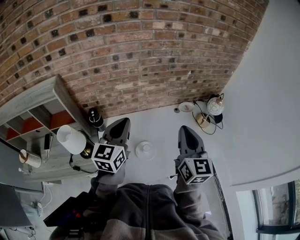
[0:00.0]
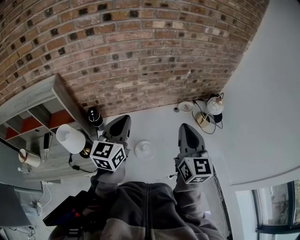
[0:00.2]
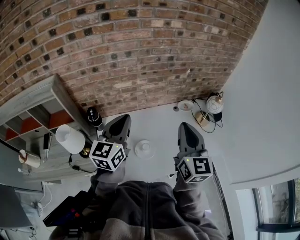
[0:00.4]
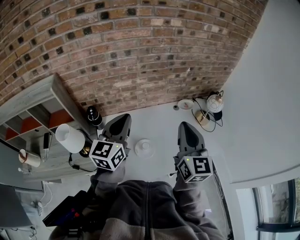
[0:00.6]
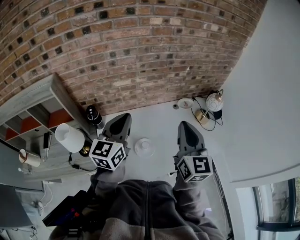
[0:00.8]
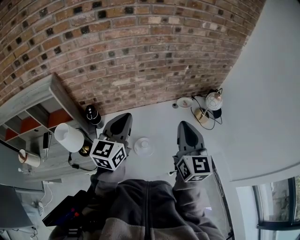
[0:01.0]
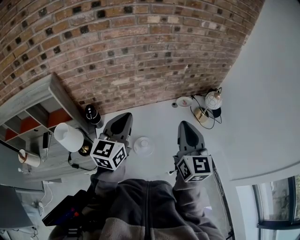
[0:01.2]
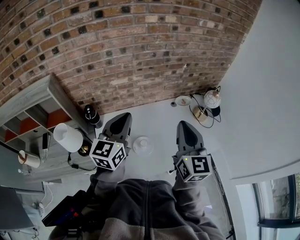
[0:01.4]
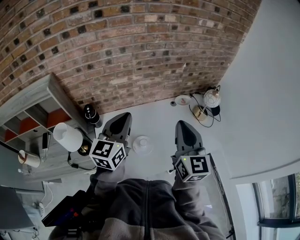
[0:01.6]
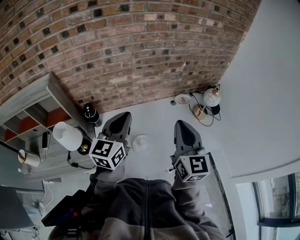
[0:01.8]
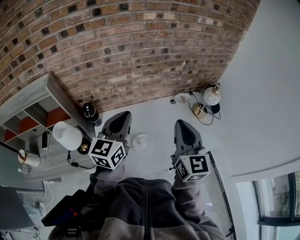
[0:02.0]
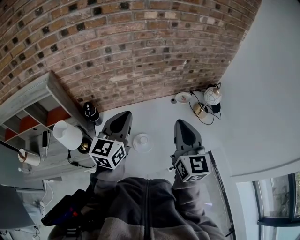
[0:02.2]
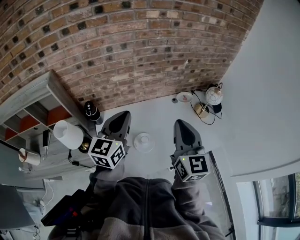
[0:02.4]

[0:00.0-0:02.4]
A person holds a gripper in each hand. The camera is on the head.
0:00.0 to 0:02.4: The grippers make only small movements.

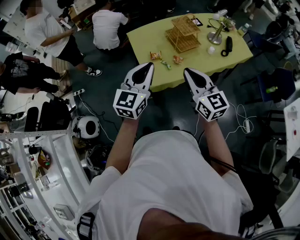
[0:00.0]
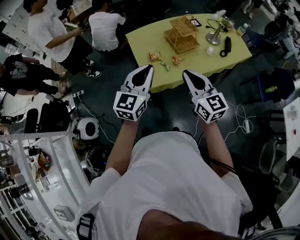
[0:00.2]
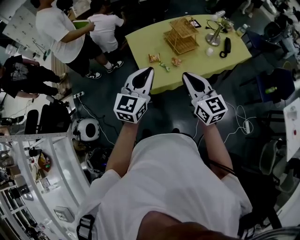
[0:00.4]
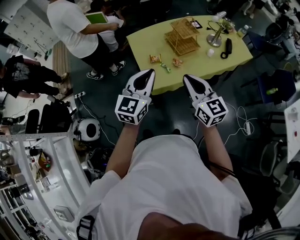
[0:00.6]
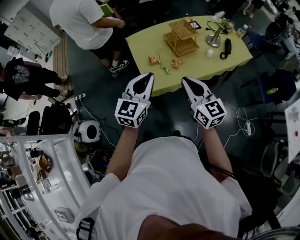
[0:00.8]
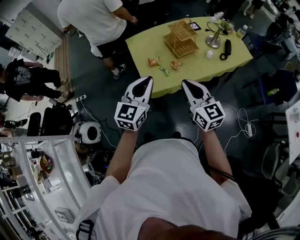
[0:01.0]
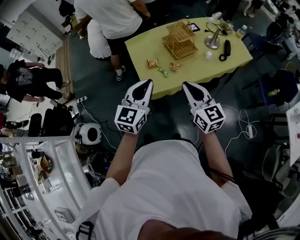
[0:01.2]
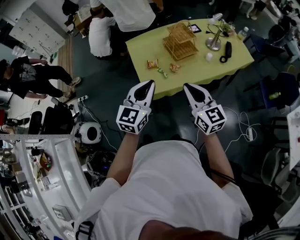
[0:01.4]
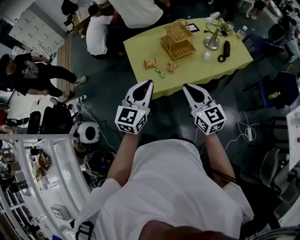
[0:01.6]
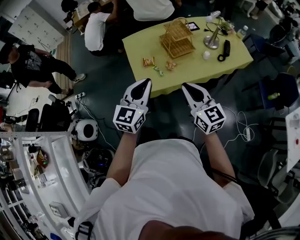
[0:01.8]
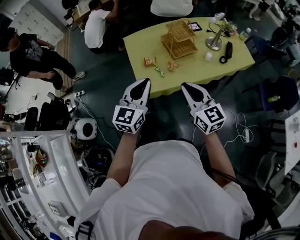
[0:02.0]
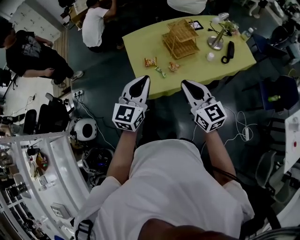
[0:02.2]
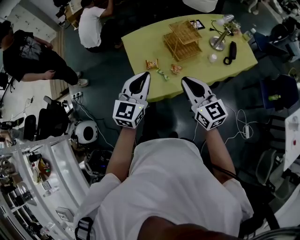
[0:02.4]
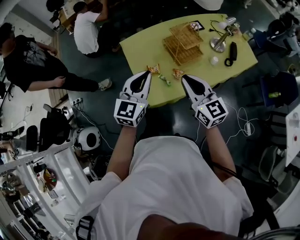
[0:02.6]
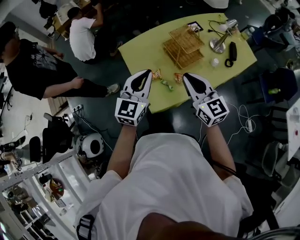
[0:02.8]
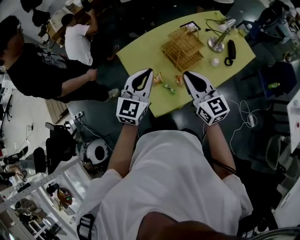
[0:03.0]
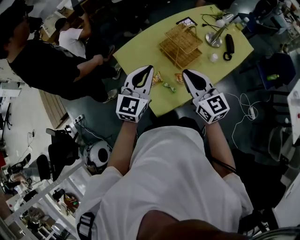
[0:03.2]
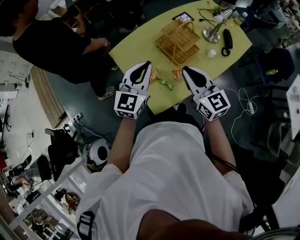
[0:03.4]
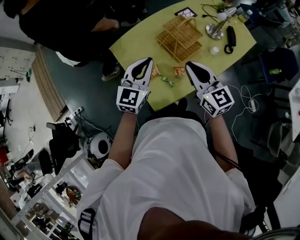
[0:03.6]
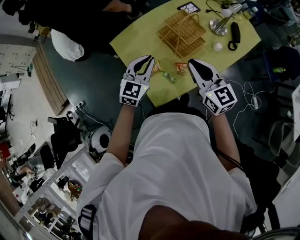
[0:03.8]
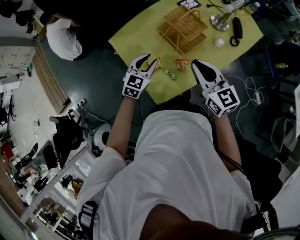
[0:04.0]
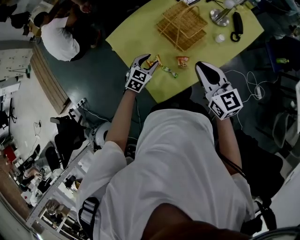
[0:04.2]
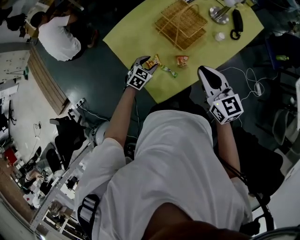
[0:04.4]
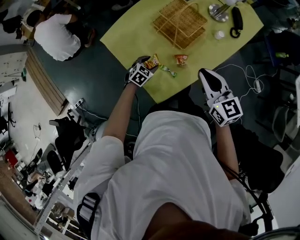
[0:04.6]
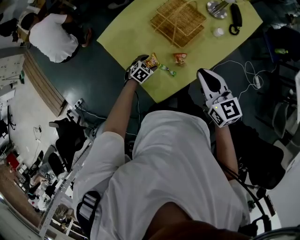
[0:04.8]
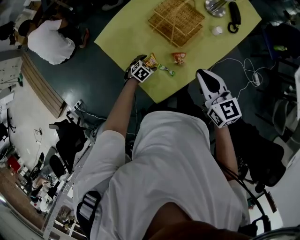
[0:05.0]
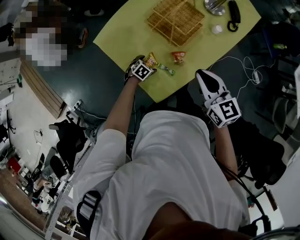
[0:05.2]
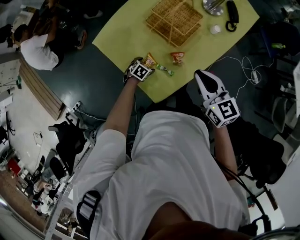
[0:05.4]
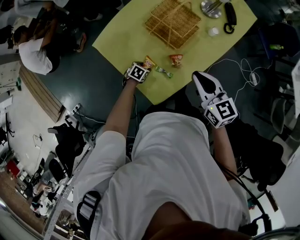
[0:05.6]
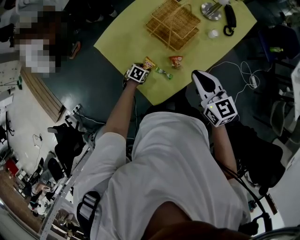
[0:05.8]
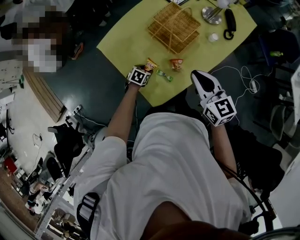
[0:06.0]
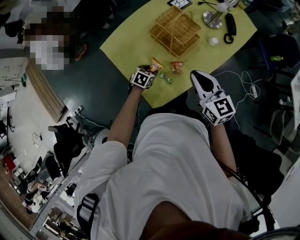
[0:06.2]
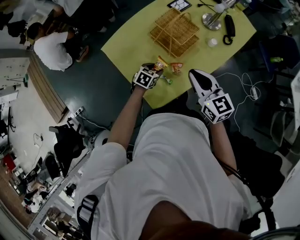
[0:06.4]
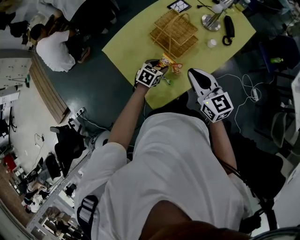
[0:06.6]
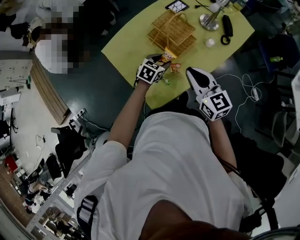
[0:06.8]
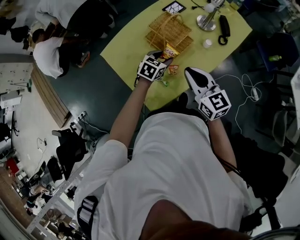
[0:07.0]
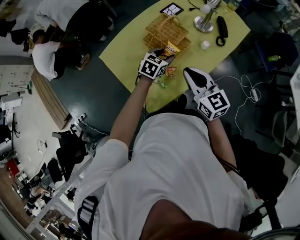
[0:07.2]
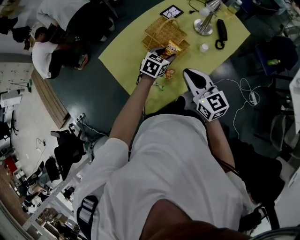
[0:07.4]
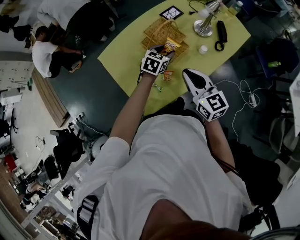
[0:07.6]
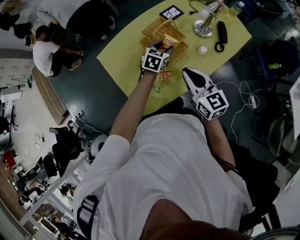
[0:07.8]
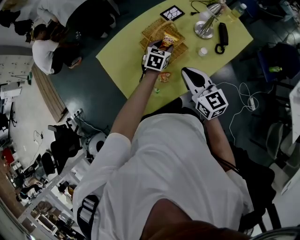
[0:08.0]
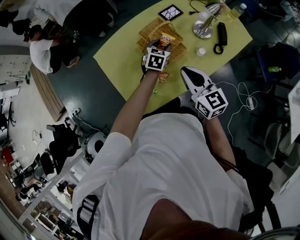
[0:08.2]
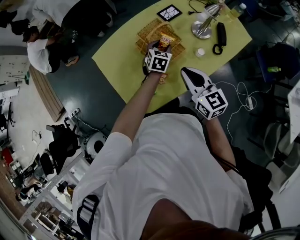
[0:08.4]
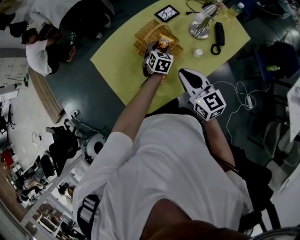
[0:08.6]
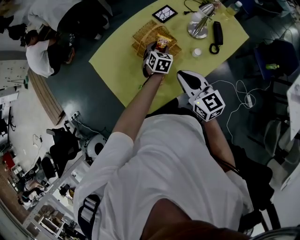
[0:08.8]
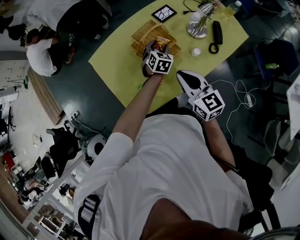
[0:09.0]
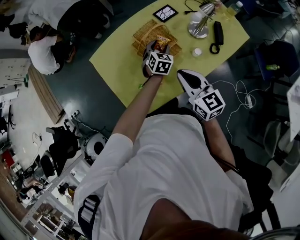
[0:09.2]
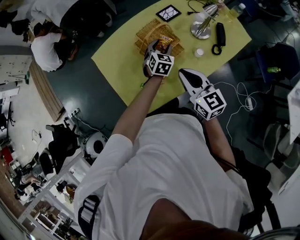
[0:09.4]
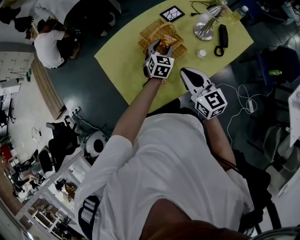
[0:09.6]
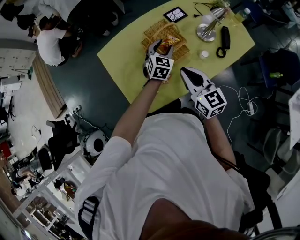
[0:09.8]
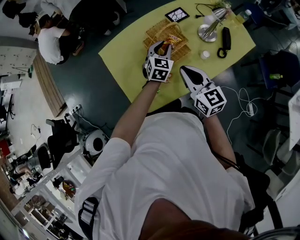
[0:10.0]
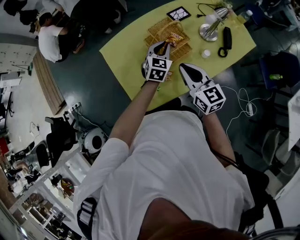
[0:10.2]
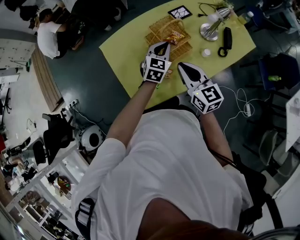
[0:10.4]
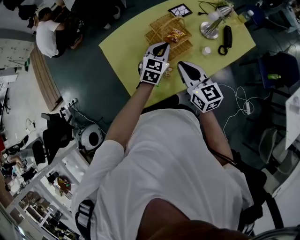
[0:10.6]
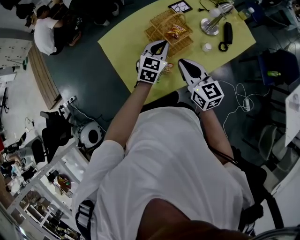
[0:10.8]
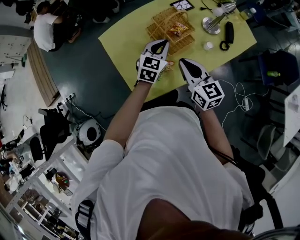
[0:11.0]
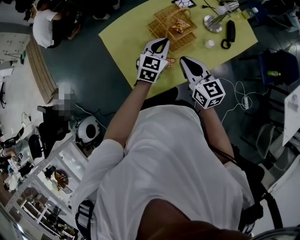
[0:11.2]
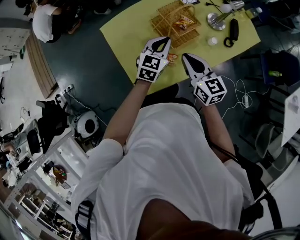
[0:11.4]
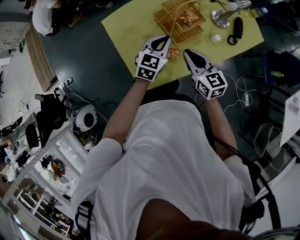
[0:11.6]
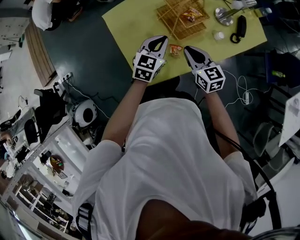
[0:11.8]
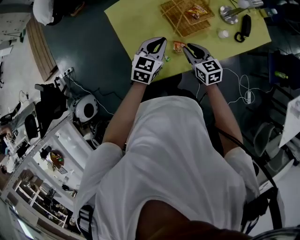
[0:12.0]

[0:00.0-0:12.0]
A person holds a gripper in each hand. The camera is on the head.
0:00.0 to 0:01.6: The grippers both shift to the right by some 10 cm.
0:01.6 to 0:03.0: The two grippers go roughly 25 cm forward.
0:03.0 to 0:04.4: The left gripper is displaced downward by roughly 35 cm, points its fingers approximately 40 degrees further downward, and opens. Meanwhile the right gripper travels downward and to the right by approximately 10 cm.
0:04.4 to 0:06.0: The left gripper travels downward by roughly 10 cm, and turns by roughly 20 degrees.
0:06.0 to 0:07.6: The right gripper is displaced to the right by roughly 5 cm; the left gripper shifts roughly 30 cm upward, to the right and forward, and turns by roughly 30 degrees.
0:07.6 to 0:09.0: The right gripper ends up approximately 5 cm from where it was, while the left gripper is displaced forward and downward by roughly 10 cm, and turns by some 30 degrees.
0:09.0 to 0:10.4: The right gripper heads to the left, covering roughly 5 cm; the left gripper moves upward, backward and to the left, approximately 15 cm, and closes its fingers.
0:10.4 to 0:12.0: The right gripper goes approximately 15 cm downward, and changes its angle by approximately 20 degrees; the left gripper shifts some 15 cm to the left and backward.

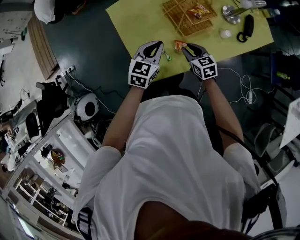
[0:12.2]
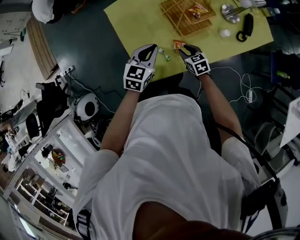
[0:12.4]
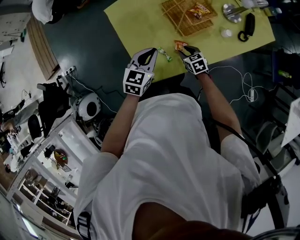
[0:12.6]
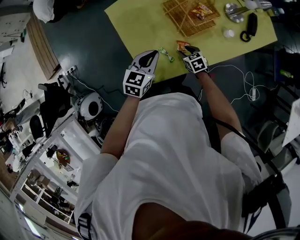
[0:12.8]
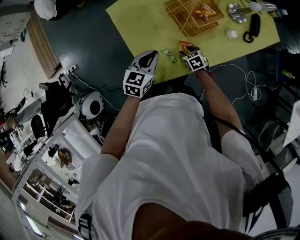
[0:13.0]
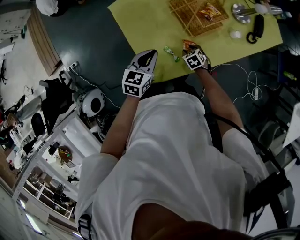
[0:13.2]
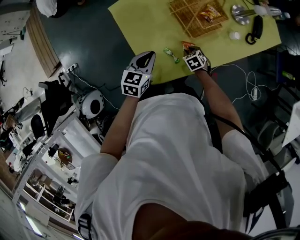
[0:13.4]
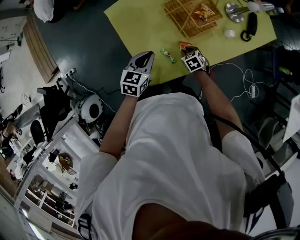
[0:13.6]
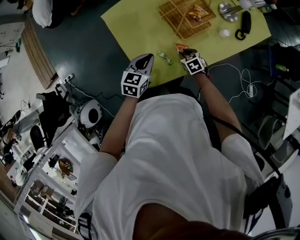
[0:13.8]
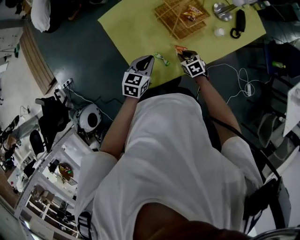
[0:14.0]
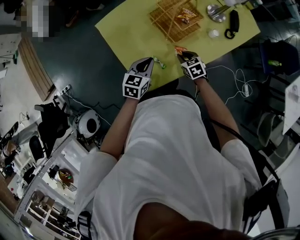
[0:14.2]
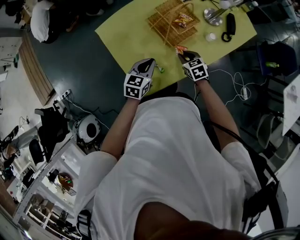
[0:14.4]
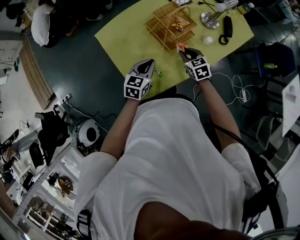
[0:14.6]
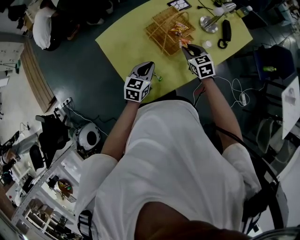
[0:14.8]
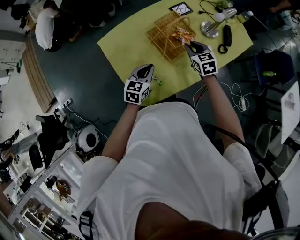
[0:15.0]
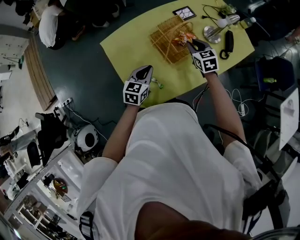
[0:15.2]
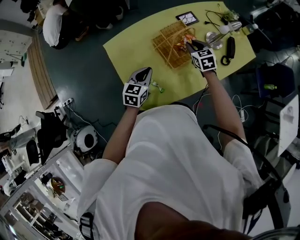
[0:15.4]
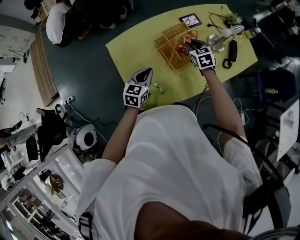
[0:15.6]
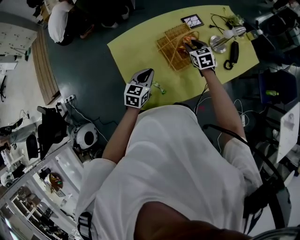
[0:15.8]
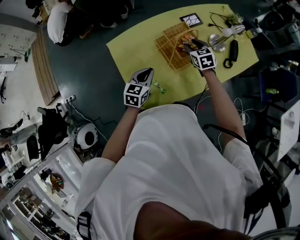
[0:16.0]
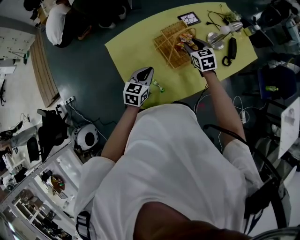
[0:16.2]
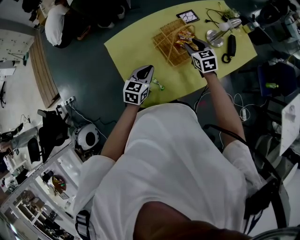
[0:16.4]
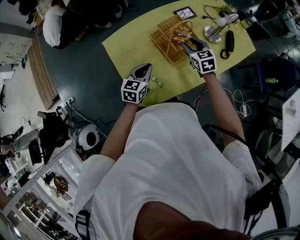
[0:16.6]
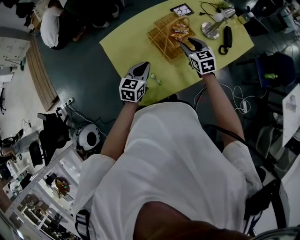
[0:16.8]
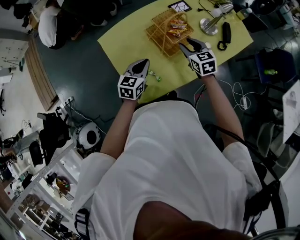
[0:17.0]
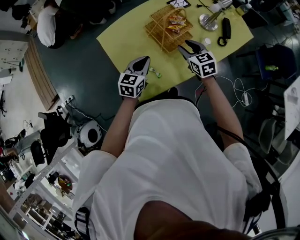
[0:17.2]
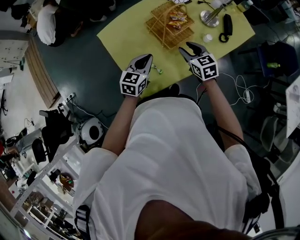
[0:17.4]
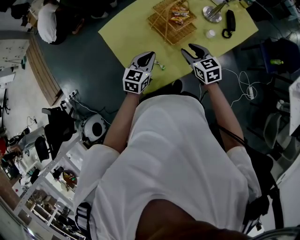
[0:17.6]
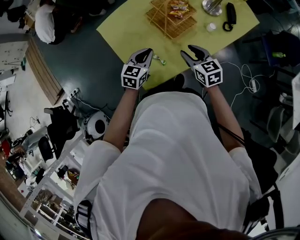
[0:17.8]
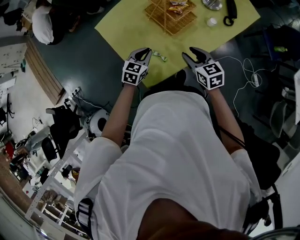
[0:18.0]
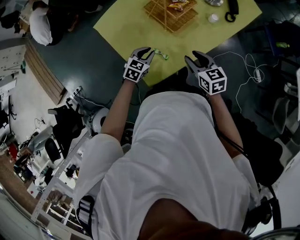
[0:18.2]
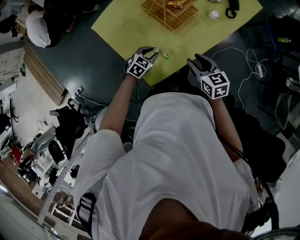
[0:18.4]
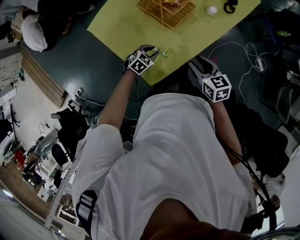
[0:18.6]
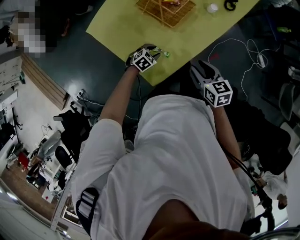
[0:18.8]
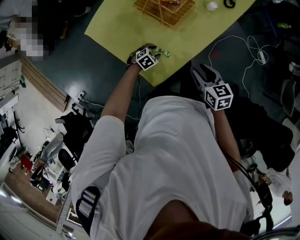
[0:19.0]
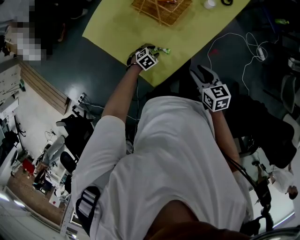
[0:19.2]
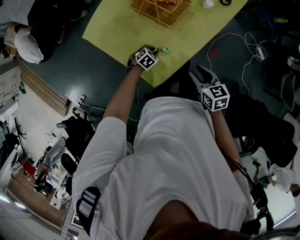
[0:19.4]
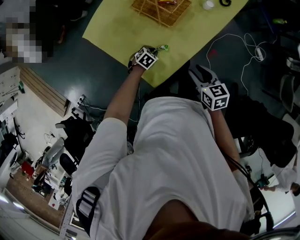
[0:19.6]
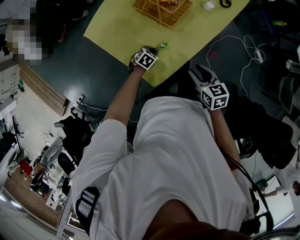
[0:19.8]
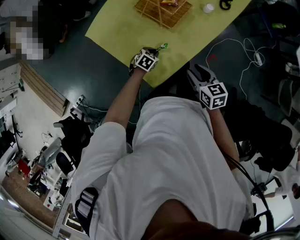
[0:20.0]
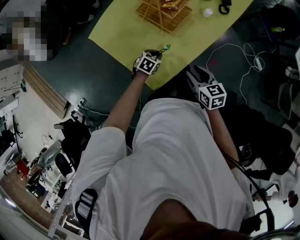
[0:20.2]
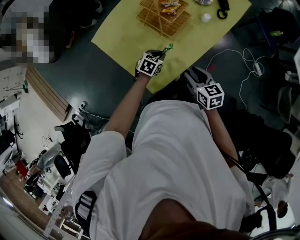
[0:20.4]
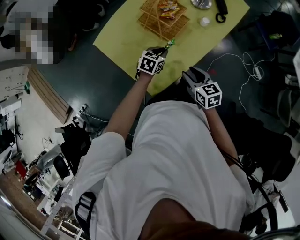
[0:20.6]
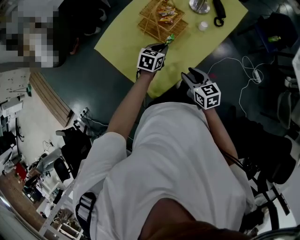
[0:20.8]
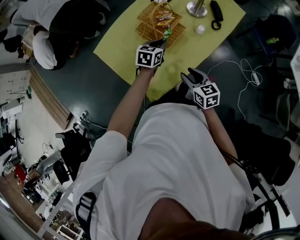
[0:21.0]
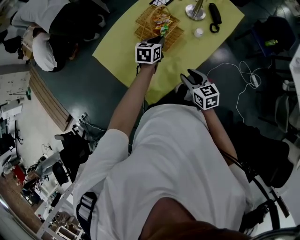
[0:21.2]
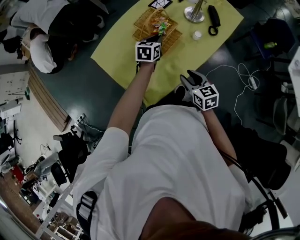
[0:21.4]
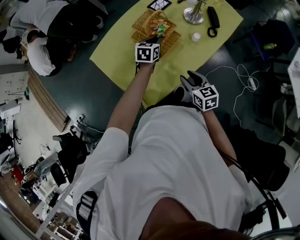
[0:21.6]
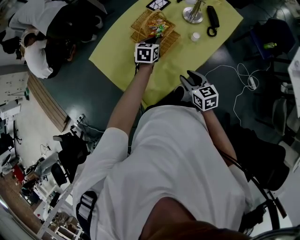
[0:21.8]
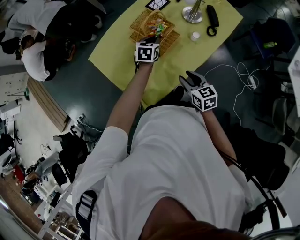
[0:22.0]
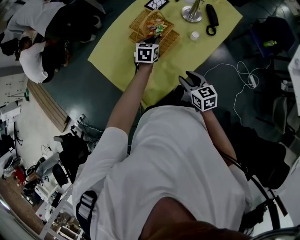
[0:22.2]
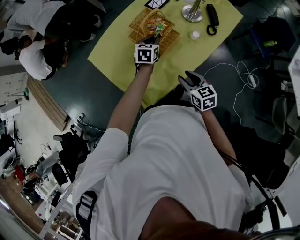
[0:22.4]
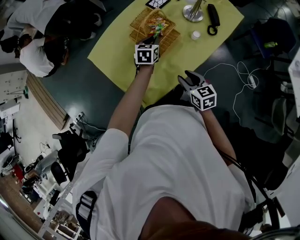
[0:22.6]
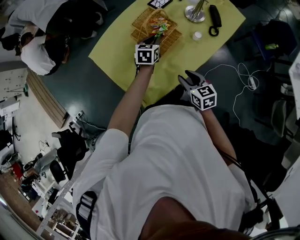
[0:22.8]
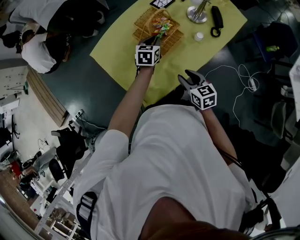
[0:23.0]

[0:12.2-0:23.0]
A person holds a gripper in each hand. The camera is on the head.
0:12.2 to 0:13.8: The right gripper shifts about 10 cm downward, and rotates some 20 degrees. Meanwhile the left gripper travels downward by about 5 cm.
0:13.8 to 0:15.2: The left gripper goes roughly 5 cm forward. The right gripper goes approximately 25 cm upward and forward, and rotates some 30 degrees.
0:15.2 to 0:16.8: The right gripper opens.
0:16.8 to 0:18.4: The left gripper goes approximately 20 cm downward, and turns by some 40 degrees. The right gripper is displaced backward by about 20 cm, and turns by roughly 20 degrees.
0:18.4 to 0:20.0: The right gripper goes about 5 cm backward, while the left gripper heads downward, covering about 5 cm.
0:20.0 to 0:21.4: The left gripper shifts some 30 cm upward and forward, and rotates some 40 degrees. The right gripper moves forward, roughly 10 cm.
0:21.4 to 0:23.0: The grippers stay close to where they were, moving slightly.
